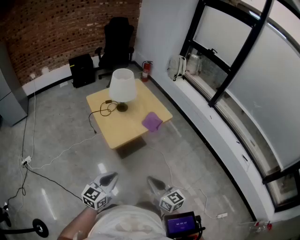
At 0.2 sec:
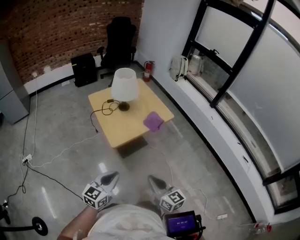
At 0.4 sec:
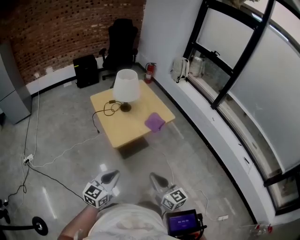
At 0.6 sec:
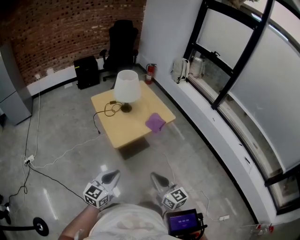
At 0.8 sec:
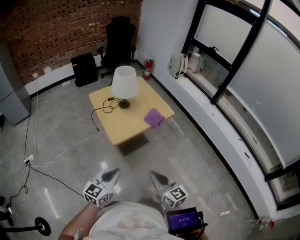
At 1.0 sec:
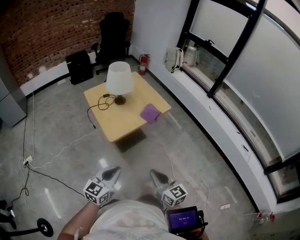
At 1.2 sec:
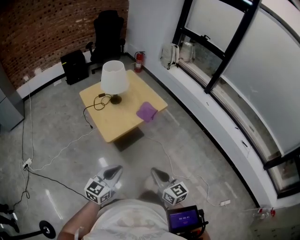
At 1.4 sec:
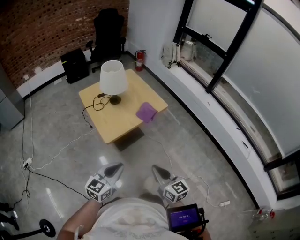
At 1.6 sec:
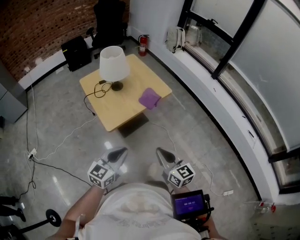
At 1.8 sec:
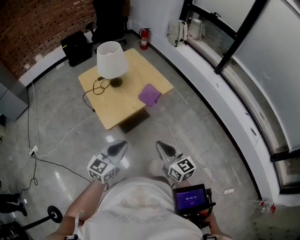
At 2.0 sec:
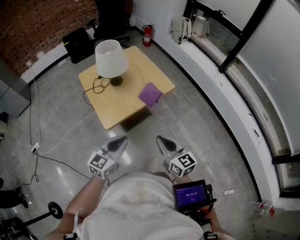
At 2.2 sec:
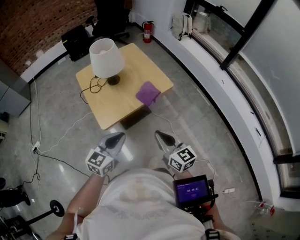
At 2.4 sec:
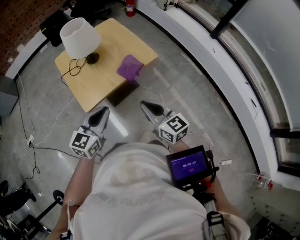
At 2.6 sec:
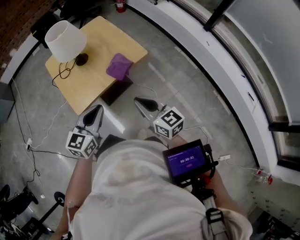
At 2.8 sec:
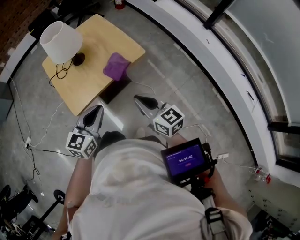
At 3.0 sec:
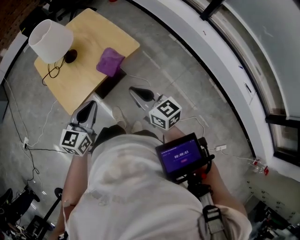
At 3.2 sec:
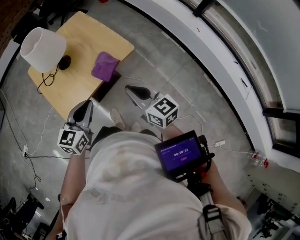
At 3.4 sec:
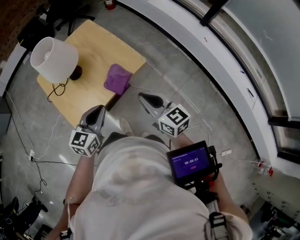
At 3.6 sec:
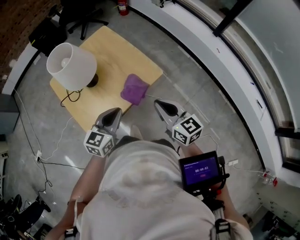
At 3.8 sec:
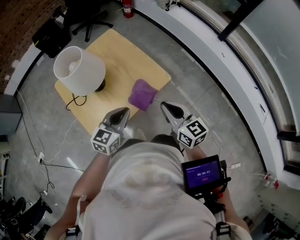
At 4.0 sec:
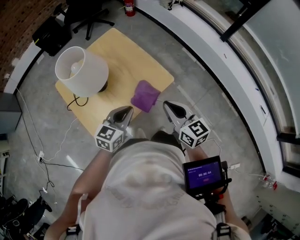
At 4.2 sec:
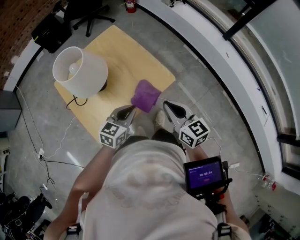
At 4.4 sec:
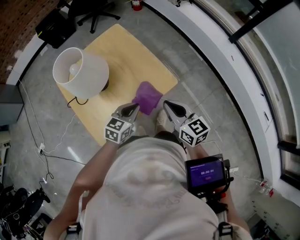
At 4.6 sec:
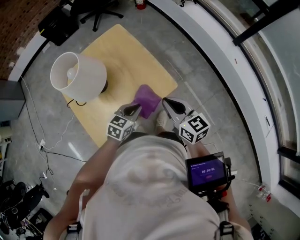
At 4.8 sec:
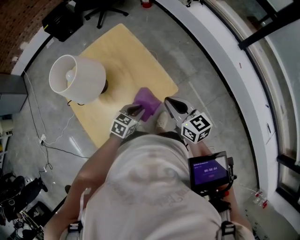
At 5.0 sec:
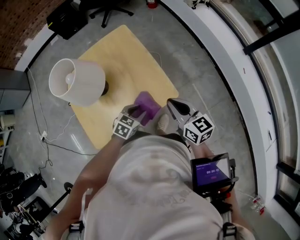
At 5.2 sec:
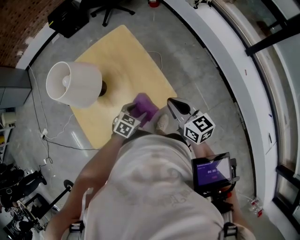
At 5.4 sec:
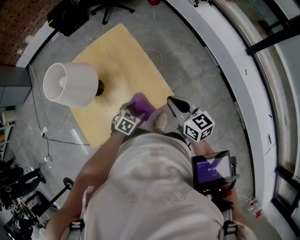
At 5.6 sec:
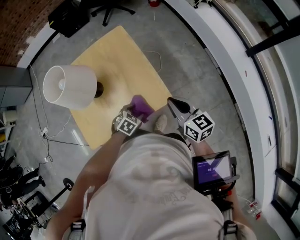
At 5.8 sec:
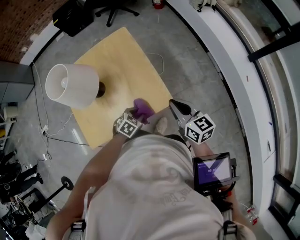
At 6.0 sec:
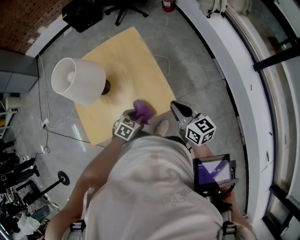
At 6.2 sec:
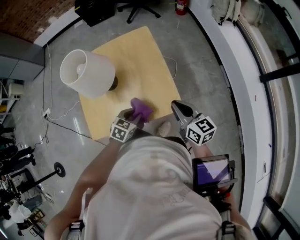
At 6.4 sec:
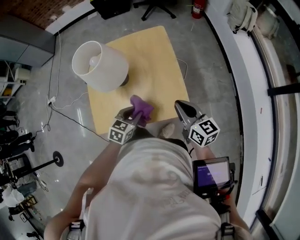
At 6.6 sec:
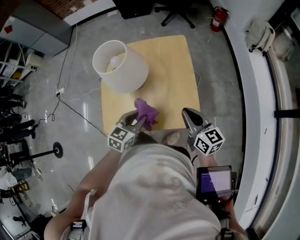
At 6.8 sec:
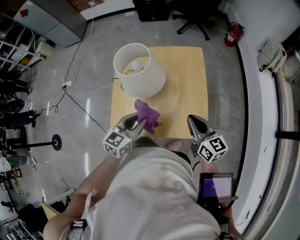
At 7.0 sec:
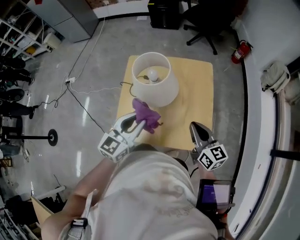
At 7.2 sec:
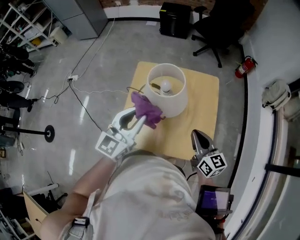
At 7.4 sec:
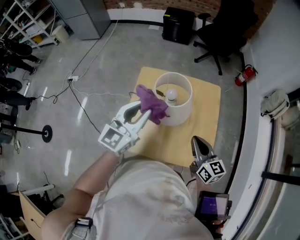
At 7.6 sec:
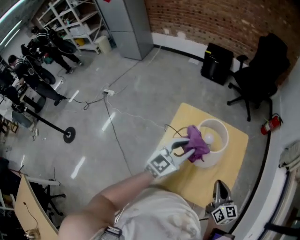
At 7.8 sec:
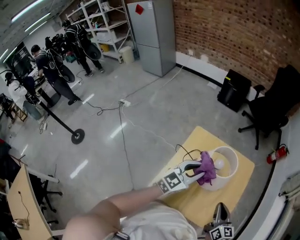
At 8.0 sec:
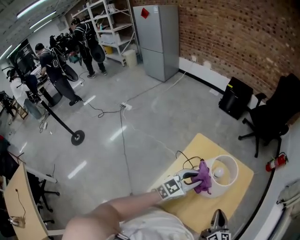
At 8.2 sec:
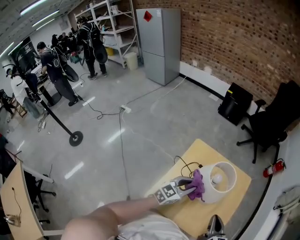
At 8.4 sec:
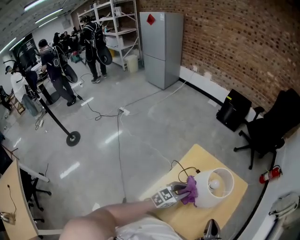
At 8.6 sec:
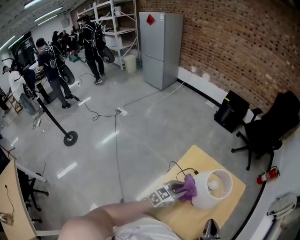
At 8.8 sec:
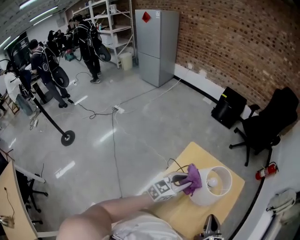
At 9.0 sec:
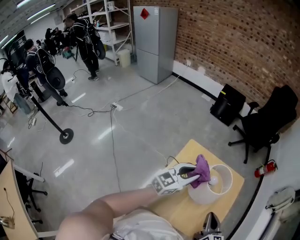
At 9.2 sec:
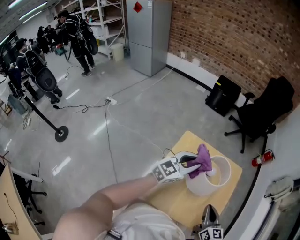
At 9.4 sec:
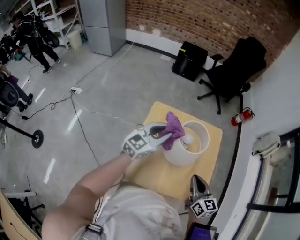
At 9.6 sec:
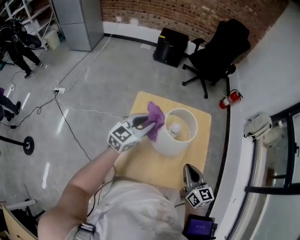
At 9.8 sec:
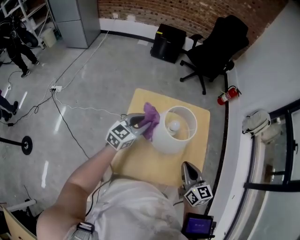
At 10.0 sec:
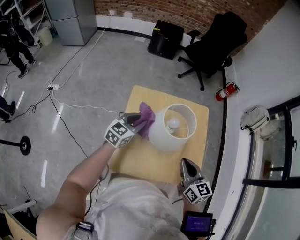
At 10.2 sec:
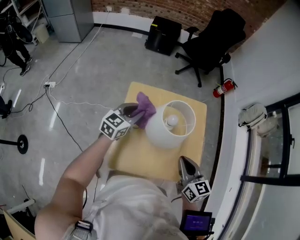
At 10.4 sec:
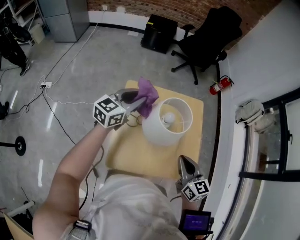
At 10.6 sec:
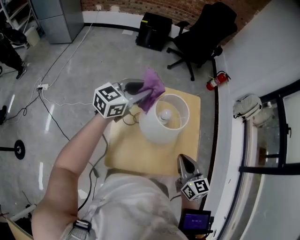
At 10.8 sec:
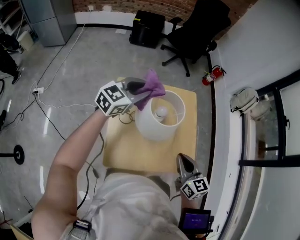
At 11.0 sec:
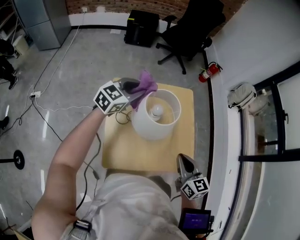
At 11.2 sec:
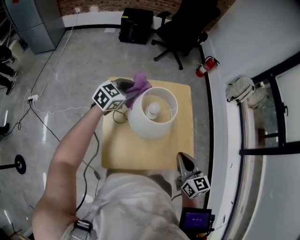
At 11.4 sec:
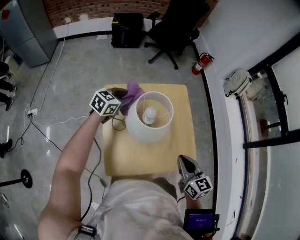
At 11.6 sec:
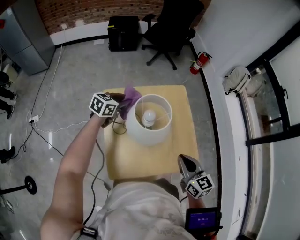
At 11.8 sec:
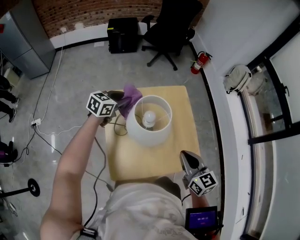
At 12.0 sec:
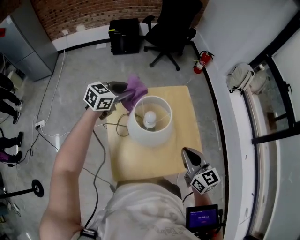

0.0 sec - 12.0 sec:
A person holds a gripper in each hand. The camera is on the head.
0.0 sec - 1.6 sec: The grippers both shift to the right and forward by roughly 10 cm.
1.6 sec - 3.0 sec: The grippers both shift forward and to the right by some 20 cm.
3.0 sec - 4.4 sec: The right gripper is displaced forward by approximately 15 cm. Meanwhile the left gripper heads forward and downward, covering some 25 cm.
4.4 sec - 6.0 sec: The left gripper heads downward, covering roughly 10 cm, rotates some 30 degrees, and opens and closes again. Meanwhile the right gripper shifts about 15 cm forward and to the right.
6.0 sec - 7.6 sec: The right gripper ends up roughly 20 cm from where it was, and turns by about 20 degrees; the left gripper goes roughly 30 cm upward, and points its fingers approximately 50 degrees further upward.
7.6 sec - 9.0 sec: The two grippers go some 10 cm to the left. The left gripper travels downward and back again, some 15 cm each way.
9.0 sec - 10.4 sec: The left gripper shifts approximately 10 cm forward, and moves approximately 10 cm downward and comes back.
10.4 sec - 12.0 sec: The left gripper goes up and down, some 15 cm each way, reversing 2 times, and changes its angle by about 30 degrees.

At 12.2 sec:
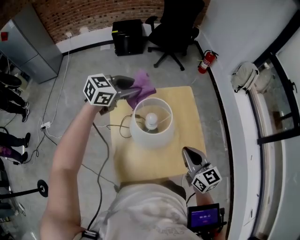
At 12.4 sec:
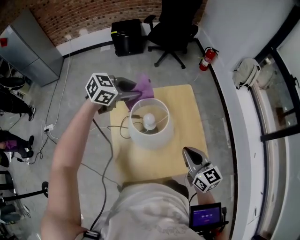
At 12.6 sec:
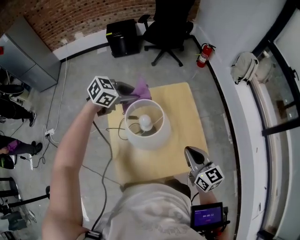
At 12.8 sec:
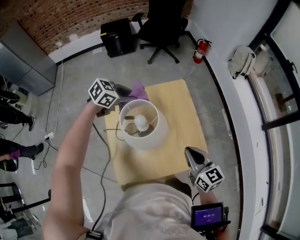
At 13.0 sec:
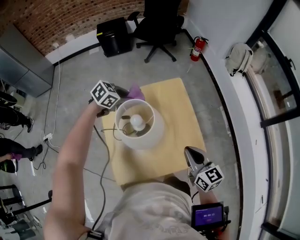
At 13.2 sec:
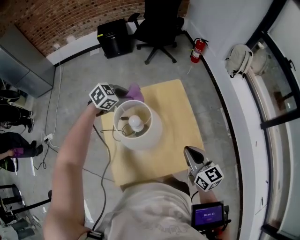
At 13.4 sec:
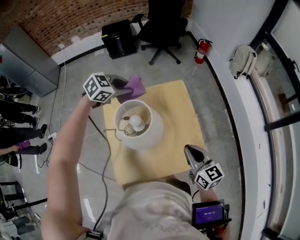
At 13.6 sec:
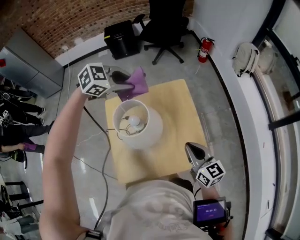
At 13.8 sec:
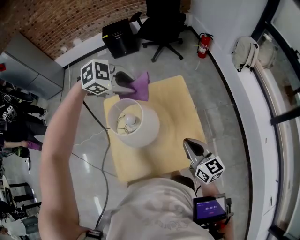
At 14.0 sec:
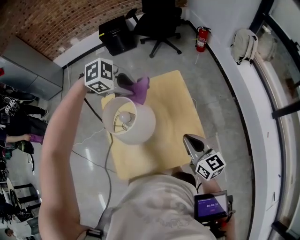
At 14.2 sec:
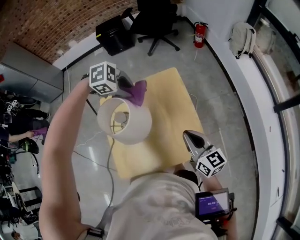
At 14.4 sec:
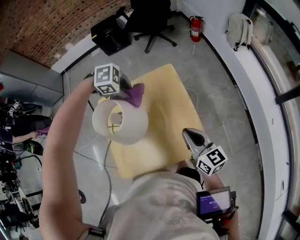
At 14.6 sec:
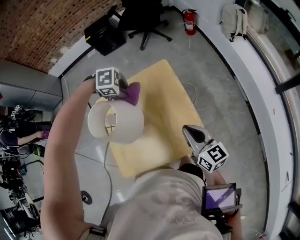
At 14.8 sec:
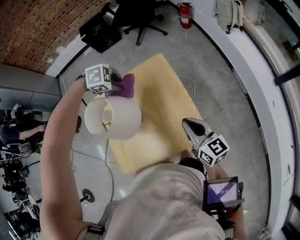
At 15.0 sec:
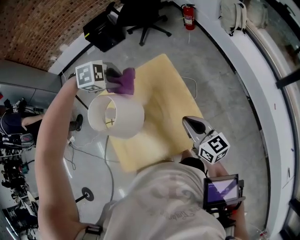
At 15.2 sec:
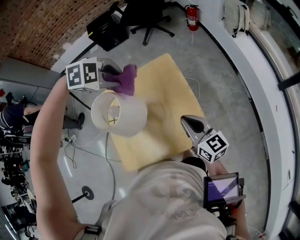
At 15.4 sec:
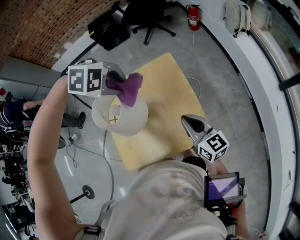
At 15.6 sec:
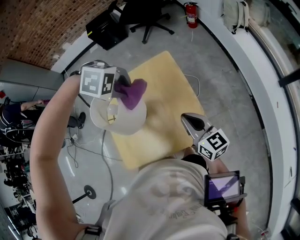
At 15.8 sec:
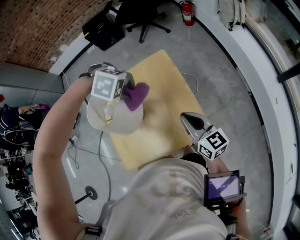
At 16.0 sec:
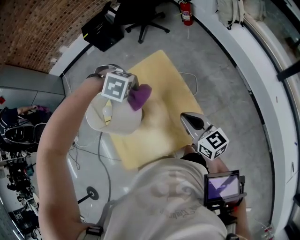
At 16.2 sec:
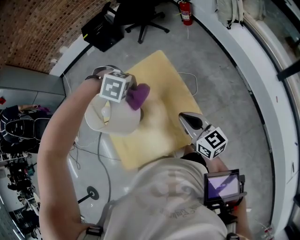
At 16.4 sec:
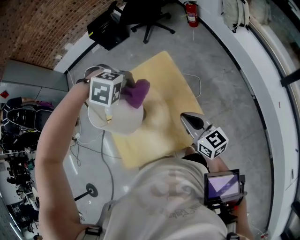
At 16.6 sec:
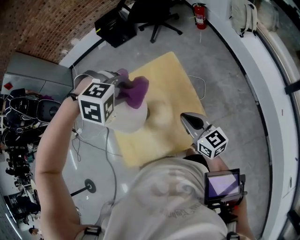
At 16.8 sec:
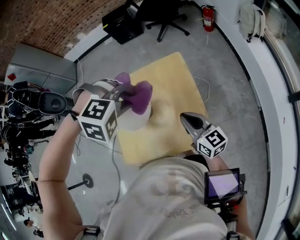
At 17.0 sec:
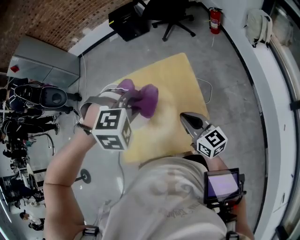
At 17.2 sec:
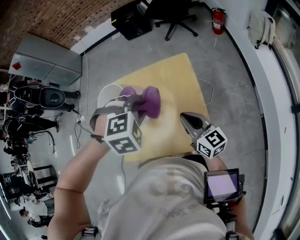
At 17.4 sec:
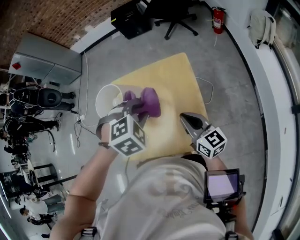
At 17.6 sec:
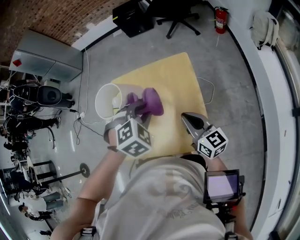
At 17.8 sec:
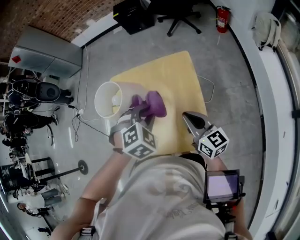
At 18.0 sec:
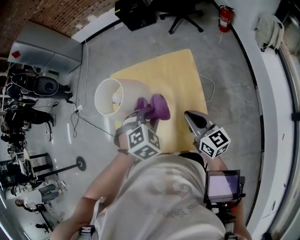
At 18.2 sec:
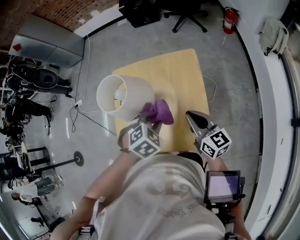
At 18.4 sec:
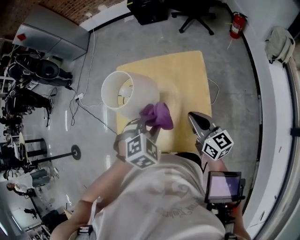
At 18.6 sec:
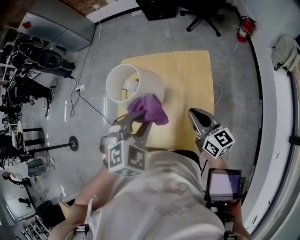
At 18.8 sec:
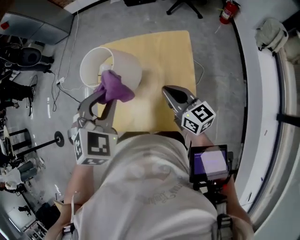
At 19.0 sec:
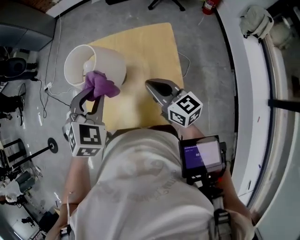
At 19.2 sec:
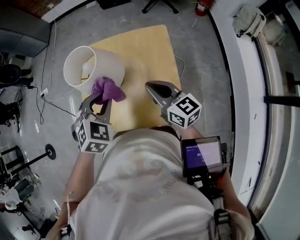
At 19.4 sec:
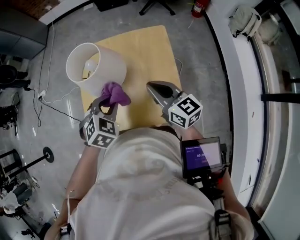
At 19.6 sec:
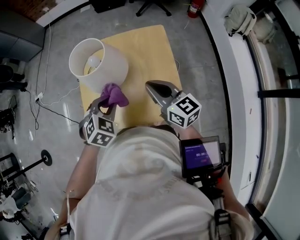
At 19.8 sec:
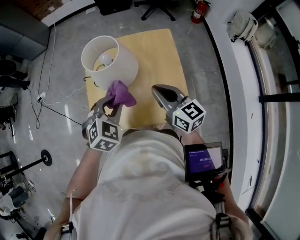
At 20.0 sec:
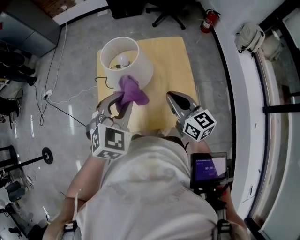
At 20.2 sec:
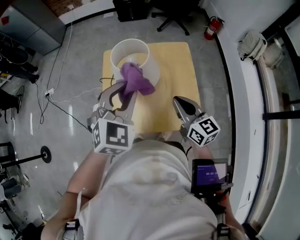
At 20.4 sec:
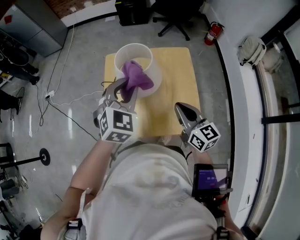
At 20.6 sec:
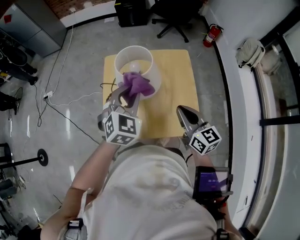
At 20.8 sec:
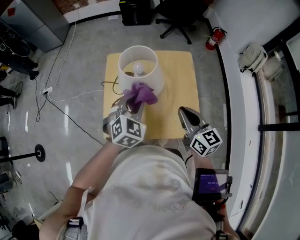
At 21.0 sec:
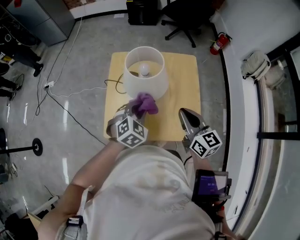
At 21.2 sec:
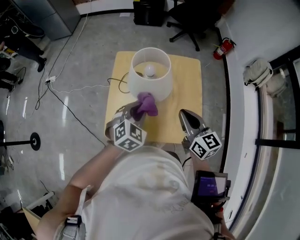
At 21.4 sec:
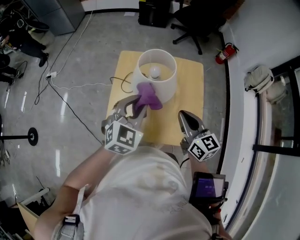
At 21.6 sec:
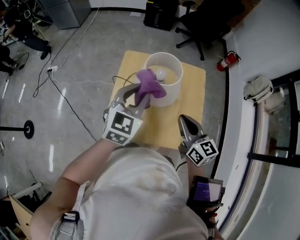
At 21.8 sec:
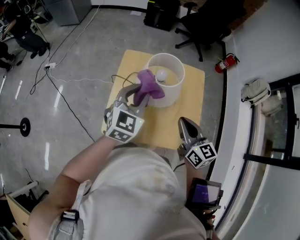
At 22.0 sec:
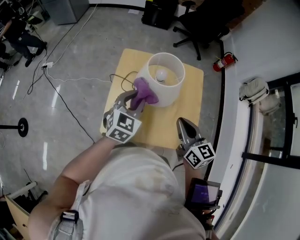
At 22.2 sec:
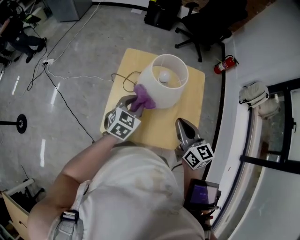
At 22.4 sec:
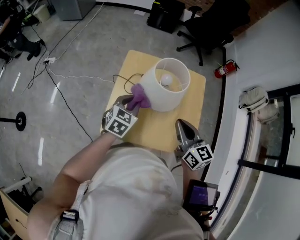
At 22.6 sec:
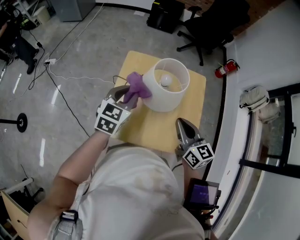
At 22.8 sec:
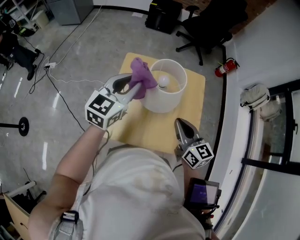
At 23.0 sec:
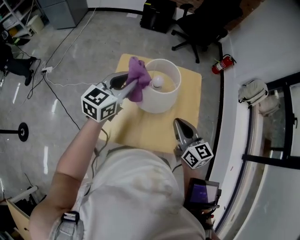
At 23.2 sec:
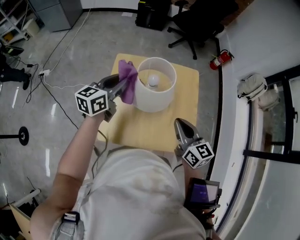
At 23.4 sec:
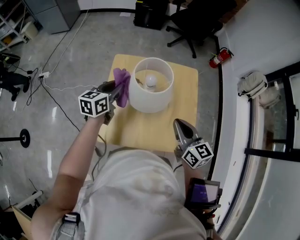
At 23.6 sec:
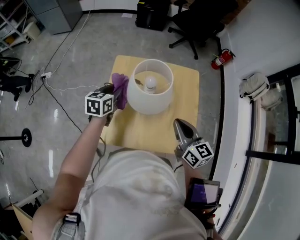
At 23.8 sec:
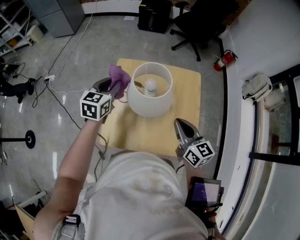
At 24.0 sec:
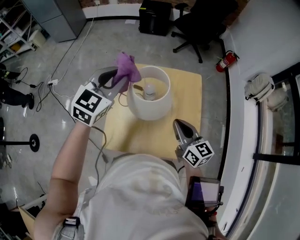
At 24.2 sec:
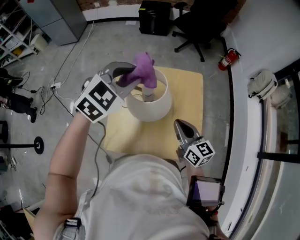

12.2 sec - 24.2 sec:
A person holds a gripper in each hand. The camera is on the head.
12.2 sec - 13.8 sec: The left gripper is displaced to the right by some 10 cm, goes downward and returns, some 15 cm each way, and swivels about 40 degrees, while the right gripper travels to the right by roughly 5 cm.
13.8 sec - 15.2 sec: The left gripper travels downward and back again, about 15 cm each way, and rotates roughly 30 degrees.
15.2 sec - 16.6 sec: The left gripper travels downward and back again, approximately 10 cm each way, and rotates some 20 degrees.
16.6 sec - 18.2 sec: The left gripper goes some 10 cm downward, and rotates around the line of its fingers by some 70 degrees, counterclockwise from behind.
18.2 sec - 19.8 sec: The left gripper moves up and down over about 15 cm, changing direction 2 times, and rotates approximately 20 degrees, while the right gripper goes about 10 cm to the left.
19.8 sec - 21.2 sec: The left gripper travels upward and back again, some 15 cm each way.
21.2 sec - 22.6 sec: The right gripper changes place by approximately 5 cm, while the left gripper moves up and down over roughly 15 cm, changing direction 2 times, and rotates about 30 degrees.
22.6 sec - 24.2 sec: The left gripper moves up and down over approximately 20 cm, changing direction 2 times, and swivels roughly 40 degrees, while the right gripper shifts by approximately 5 cm.
